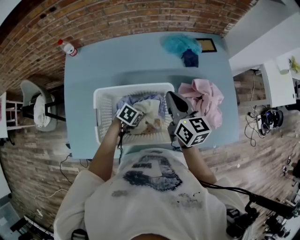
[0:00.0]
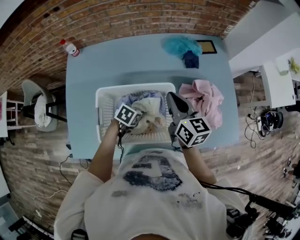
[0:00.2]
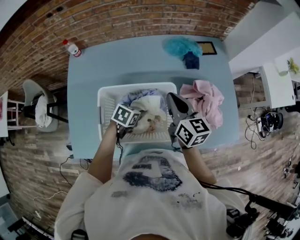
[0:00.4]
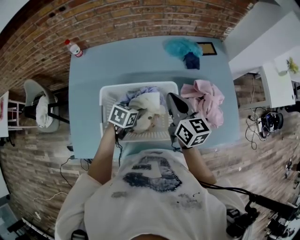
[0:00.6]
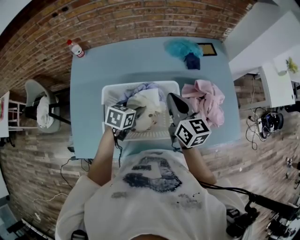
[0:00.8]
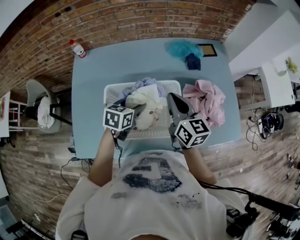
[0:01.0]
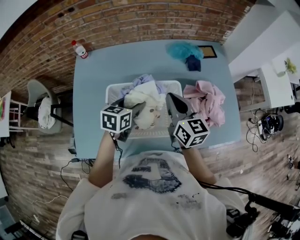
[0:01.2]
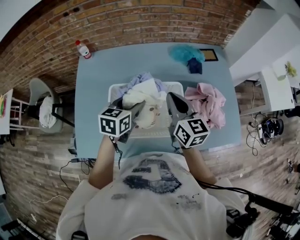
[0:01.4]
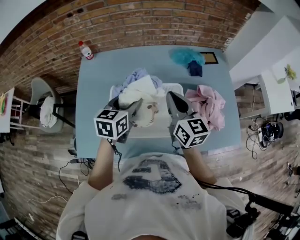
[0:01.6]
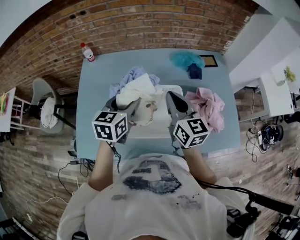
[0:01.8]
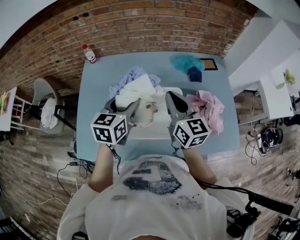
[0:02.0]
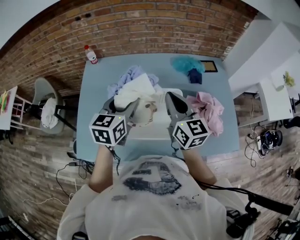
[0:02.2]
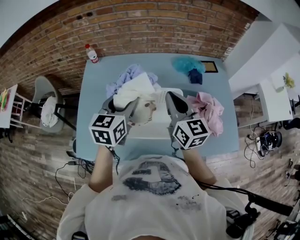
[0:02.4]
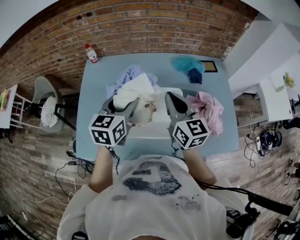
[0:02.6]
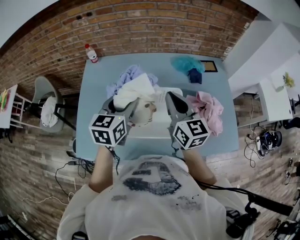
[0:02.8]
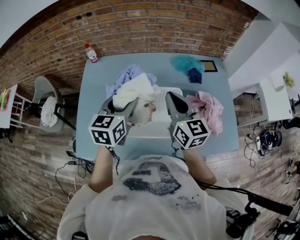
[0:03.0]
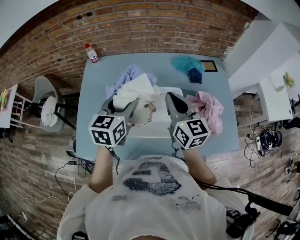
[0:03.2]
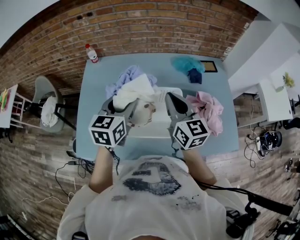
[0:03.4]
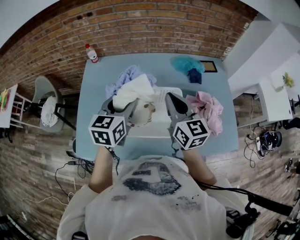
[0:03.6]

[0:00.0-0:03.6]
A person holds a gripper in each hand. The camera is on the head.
0:00.0 to 0:01.8: The right gripper is displaced upward and backward by some 10 cm. Meanwhile the left gripper goes about 25 cm upward, and tilts its fingers roughly 40 degrees upward.
0:01.8 to 0:03.6: The grippers stay close to where they were, moving slightly.

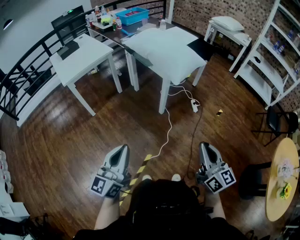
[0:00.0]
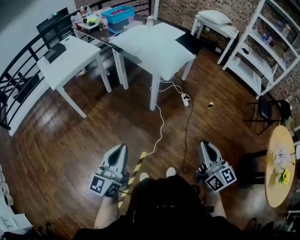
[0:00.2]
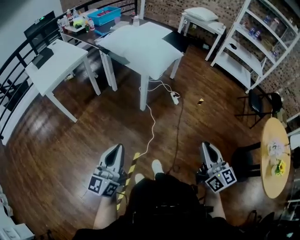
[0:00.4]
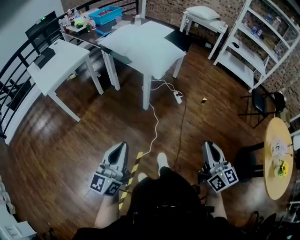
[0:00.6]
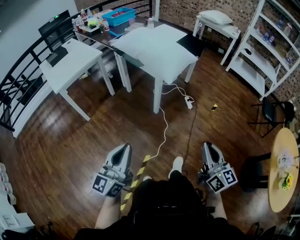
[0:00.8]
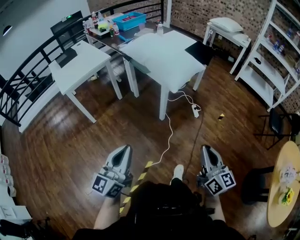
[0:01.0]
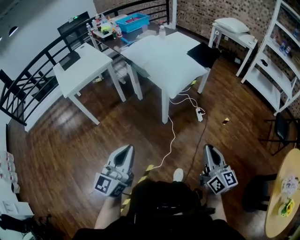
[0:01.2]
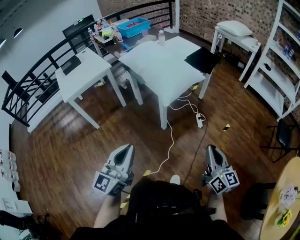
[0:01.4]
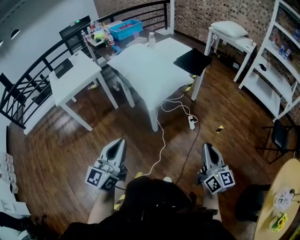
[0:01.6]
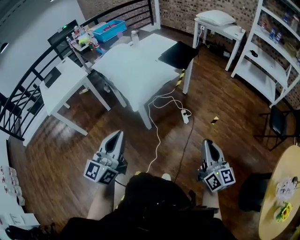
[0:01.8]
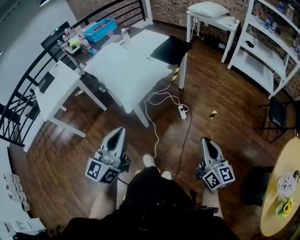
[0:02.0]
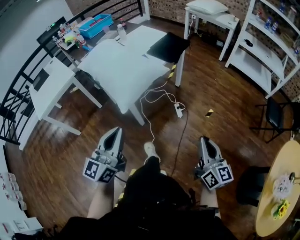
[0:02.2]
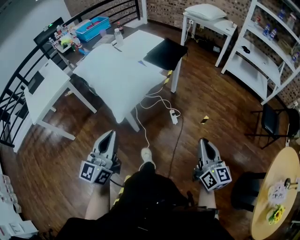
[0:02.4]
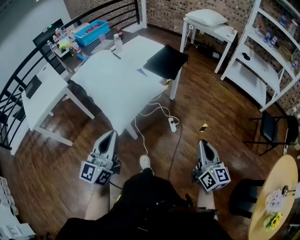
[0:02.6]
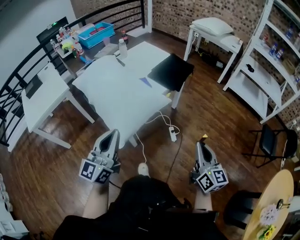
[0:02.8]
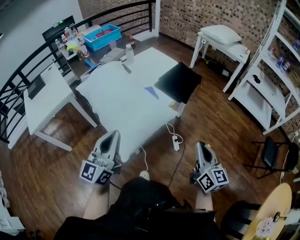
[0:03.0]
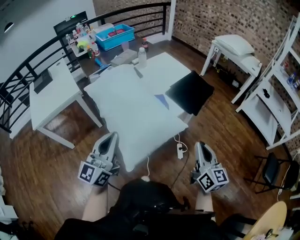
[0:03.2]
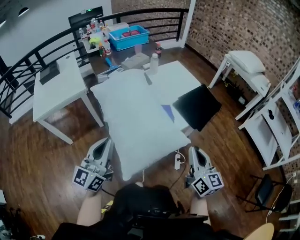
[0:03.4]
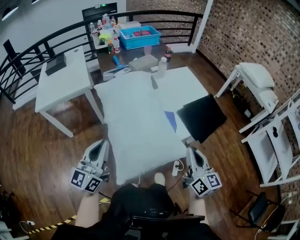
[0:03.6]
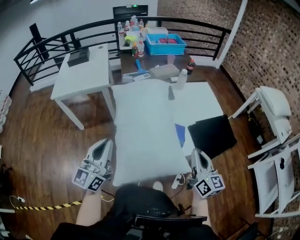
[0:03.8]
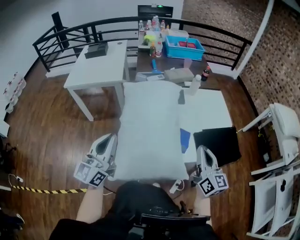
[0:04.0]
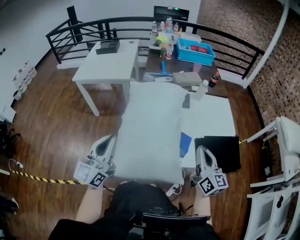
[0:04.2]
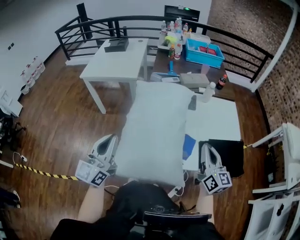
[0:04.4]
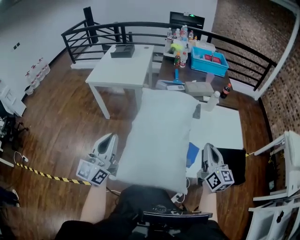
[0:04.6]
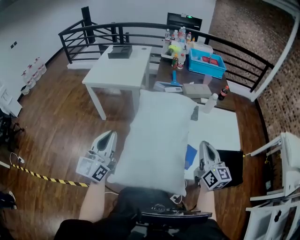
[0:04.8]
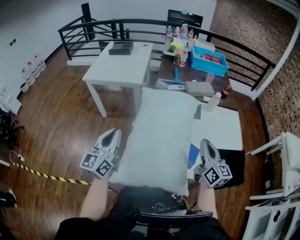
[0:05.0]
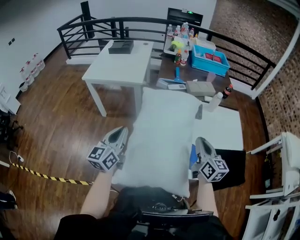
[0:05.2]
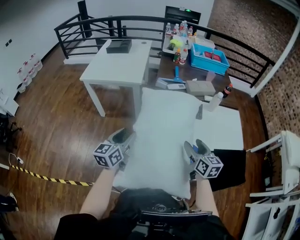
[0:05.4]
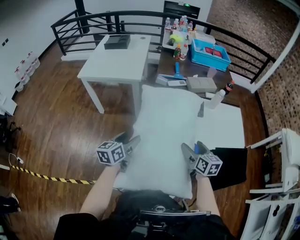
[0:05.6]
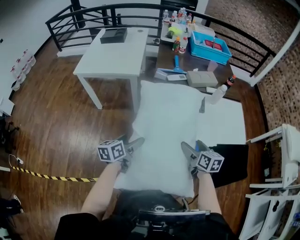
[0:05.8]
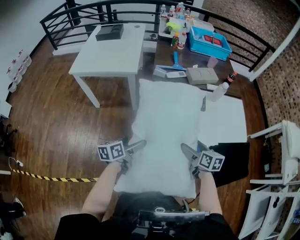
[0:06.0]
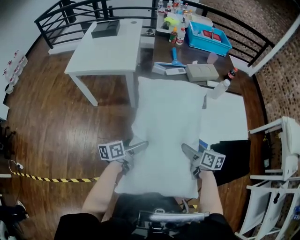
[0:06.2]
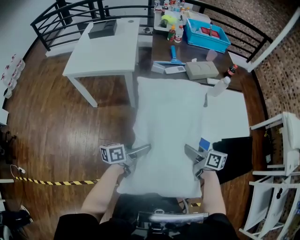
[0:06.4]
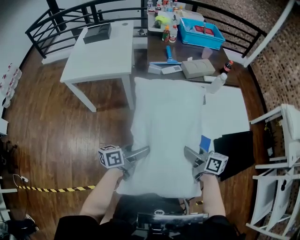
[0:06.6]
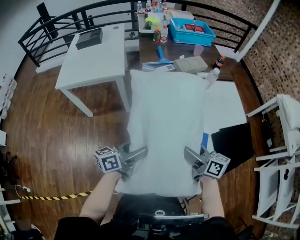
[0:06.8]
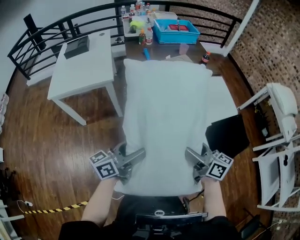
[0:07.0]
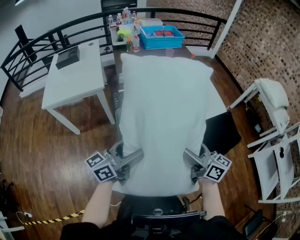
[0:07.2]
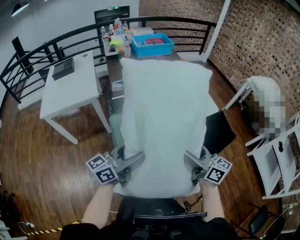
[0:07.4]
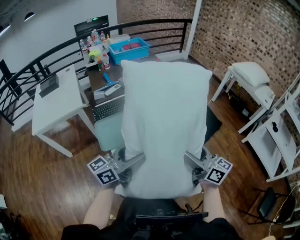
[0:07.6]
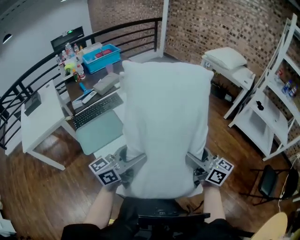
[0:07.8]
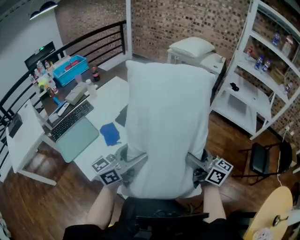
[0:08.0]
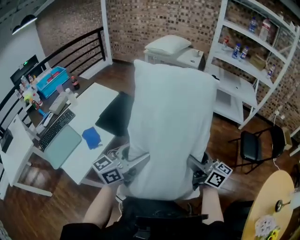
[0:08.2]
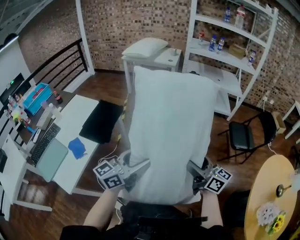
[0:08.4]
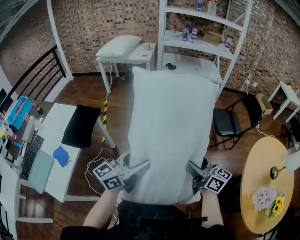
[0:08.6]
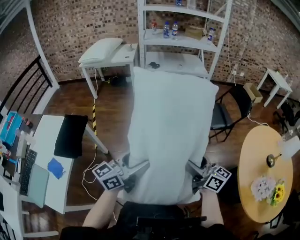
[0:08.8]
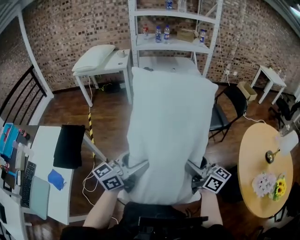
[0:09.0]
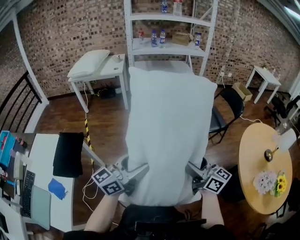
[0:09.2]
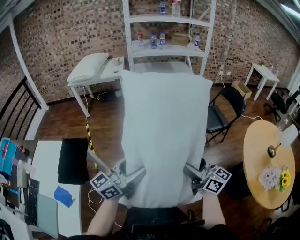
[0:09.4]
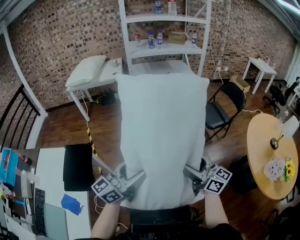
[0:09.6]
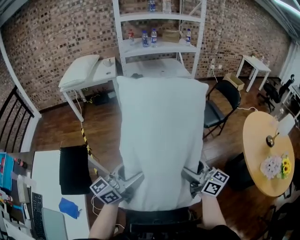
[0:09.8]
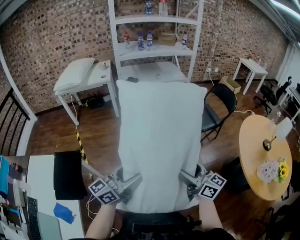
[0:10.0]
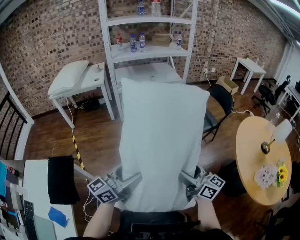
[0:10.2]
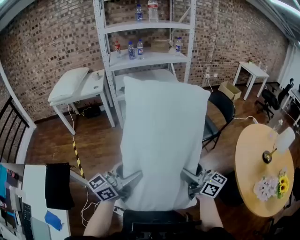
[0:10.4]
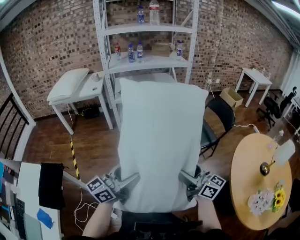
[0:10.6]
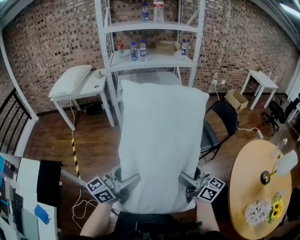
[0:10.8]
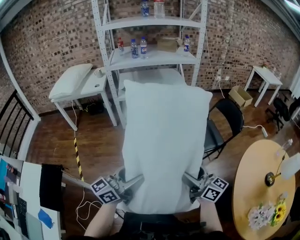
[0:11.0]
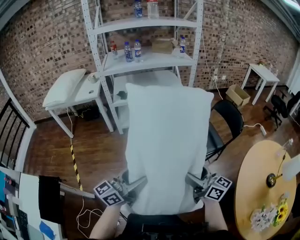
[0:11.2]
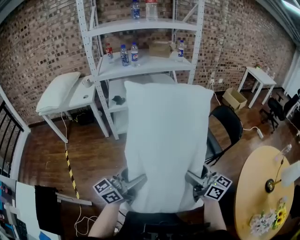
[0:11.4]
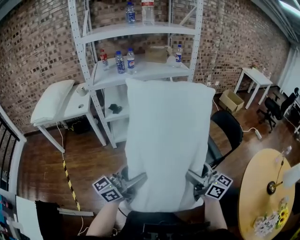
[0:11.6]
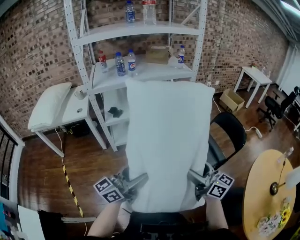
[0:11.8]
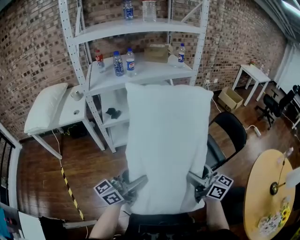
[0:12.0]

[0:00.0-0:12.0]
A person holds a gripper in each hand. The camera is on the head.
0:00.0 to 0:01.6: Both grippers move to the right and forward, about 30 cm.
0:01.6 to 0:03.0: The two grippers go approximately 35 cm forward.
0:03.0 to 0:04.4: The right gripper shifts by some 40 cm, and rotates some 50 degrees. The left gripper moves roughly 10 cm, and rotates some 50 degrees.
0:04.4 to 0:06.0: The left gripper shifts some 30 cm downward and forward, points its fingers some 40 degrees further downward, and opens up. Meanwhile the right gripper heads downward, forward and to the left, covering some 25 cm, tips its fingers downward by some 30 degrees, and opens.
0:06.0 to 0:07.6: The right gripper shifts by about 30 cm, and tips its fingers upward by roughly 40 degrees; the left gripper moves about 30 cm, and angles its fingers upward, by approximately 40 degrees.
0:07.6 to 0:09.0: Both grippers are carried roughly 70 cm. The right gripper changes its angle by roughly 70 degrees. The left gripper rotates approximately 60 degrees.
0:09.0 to 0:10.4: The grippers both shift forward by about 15 cm. The right gripper reaches some 15 cm to the left, then returns.
0:10.4 to 0:12.0: The pair of grippers is taken forward, about 40 cm.

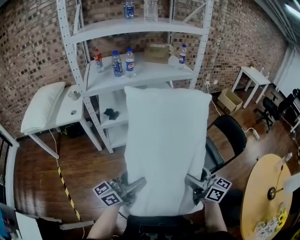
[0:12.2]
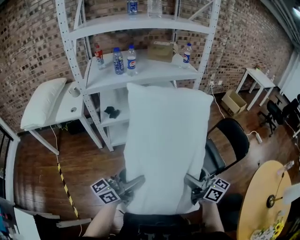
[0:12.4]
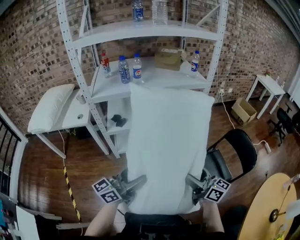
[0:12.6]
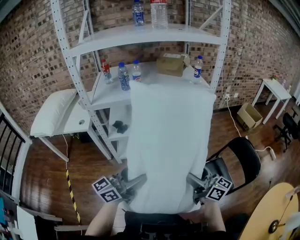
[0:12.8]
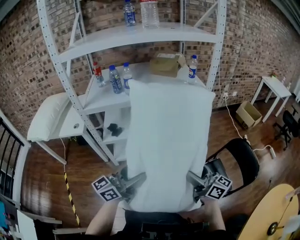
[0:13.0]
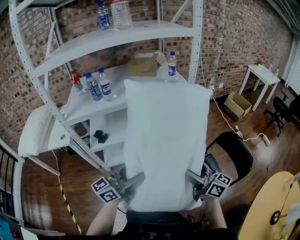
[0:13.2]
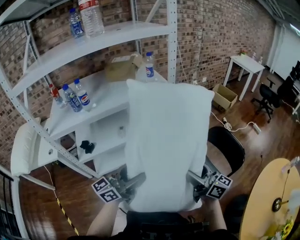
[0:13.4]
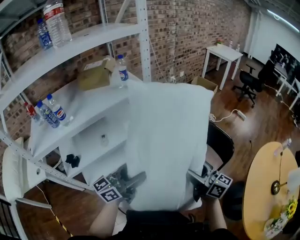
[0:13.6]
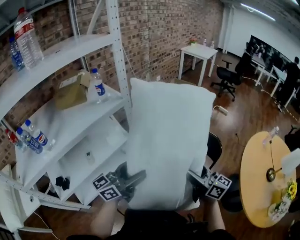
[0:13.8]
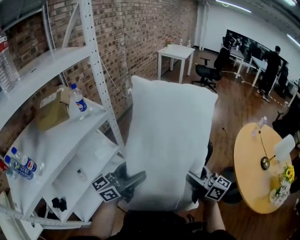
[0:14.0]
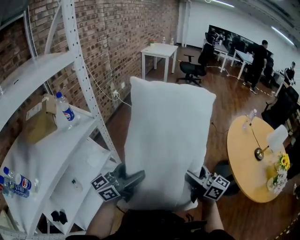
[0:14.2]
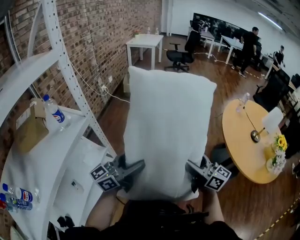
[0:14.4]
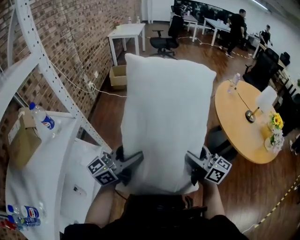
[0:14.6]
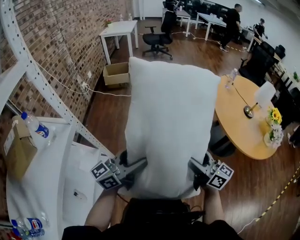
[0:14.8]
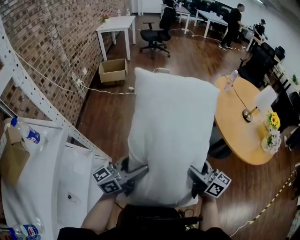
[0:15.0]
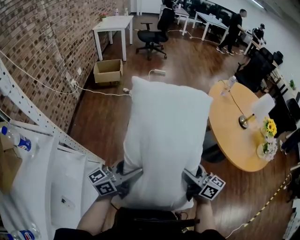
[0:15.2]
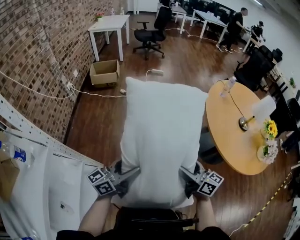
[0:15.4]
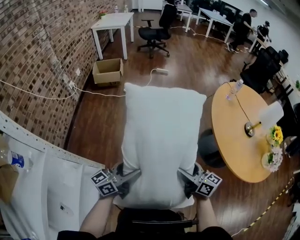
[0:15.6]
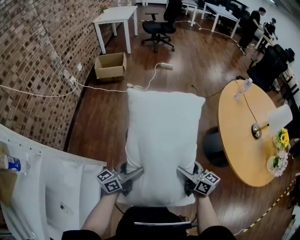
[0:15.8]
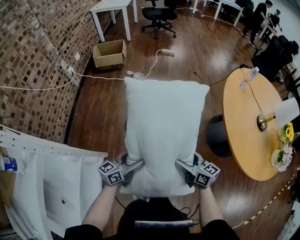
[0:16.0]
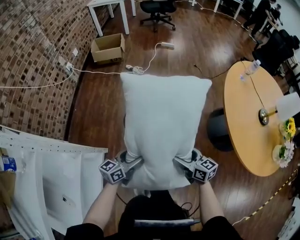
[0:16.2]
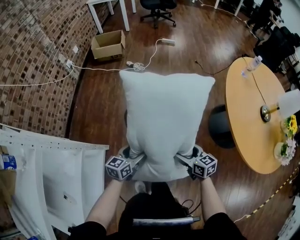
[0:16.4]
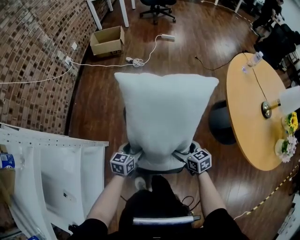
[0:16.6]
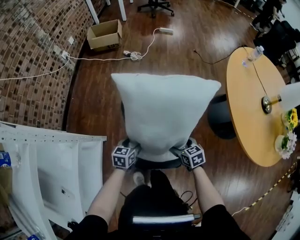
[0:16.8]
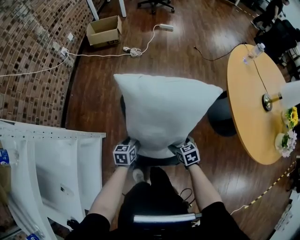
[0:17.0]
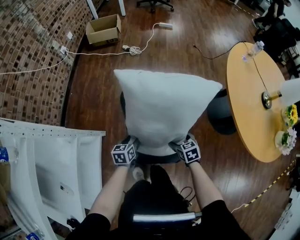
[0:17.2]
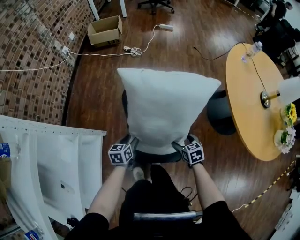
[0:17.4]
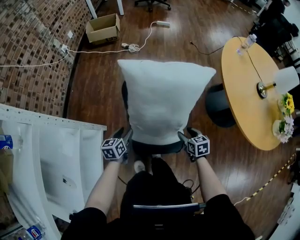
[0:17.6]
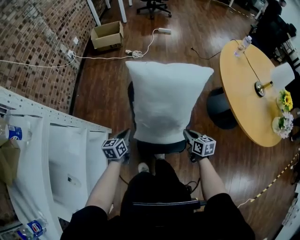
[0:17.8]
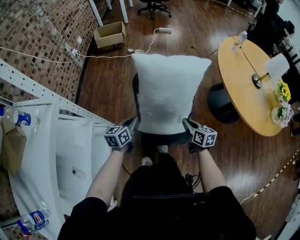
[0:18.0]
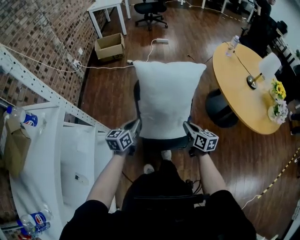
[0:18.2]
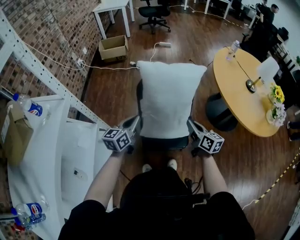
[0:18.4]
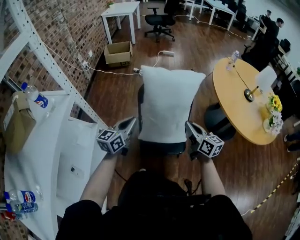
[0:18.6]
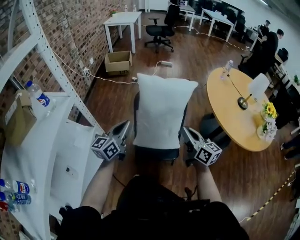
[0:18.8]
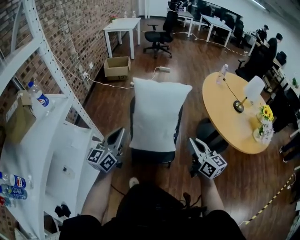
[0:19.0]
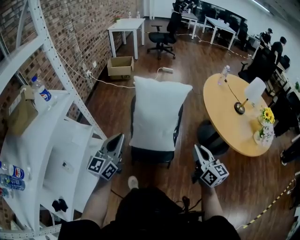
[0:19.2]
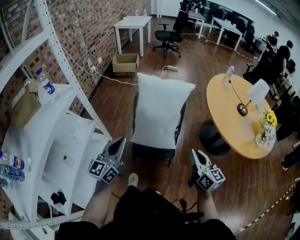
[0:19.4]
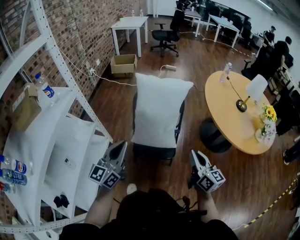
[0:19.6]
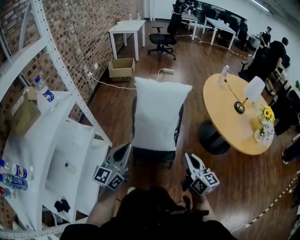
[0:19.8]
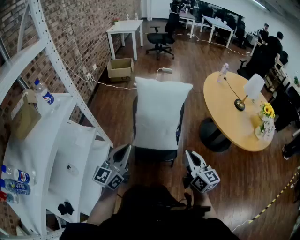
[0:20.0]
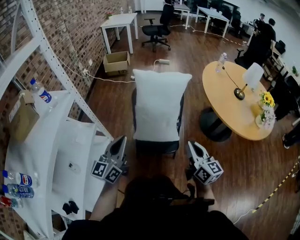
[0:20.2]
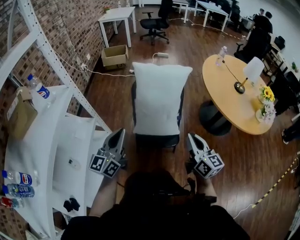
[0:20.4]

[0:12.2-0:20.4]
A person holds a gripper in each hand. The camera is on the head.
0:12.2 to 0:13.8: The pair of grippers is taken about 50 cm. The right gripper rotates roughly 30 degrees; the left gripper swivels some 30 degrees.
0:13.8 to 0:15.4: The right gripper moves some 20 cm, and rotates some 40 degrees, while the left gripper ends up approximately 30 cm from where it was, and turns by roughly 40 degrees.
0:15.4 to 0:17.2: Both grippers travel together downward, some 35 cm. The left gripper tips its fingers downward by approximately 50 degrees. The right gripper tilts its fingers approximately 50 degrees downward.
0:17.2 to 0:18.8: Both grippers travel together upward and backward, approximately 40 cm. The right gripper points its fingers about 50 degrees further upward, and closes its fingers, while the left gripper points its fingers roughly 50 degrees further upward, and closes its fingers.
0:18.8 to 0:20.4: Both grippers travel together backward, some 15 cm.
